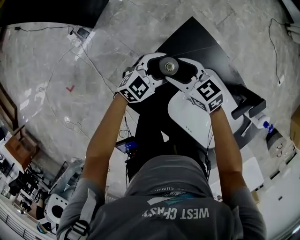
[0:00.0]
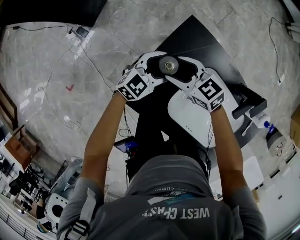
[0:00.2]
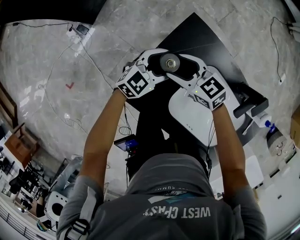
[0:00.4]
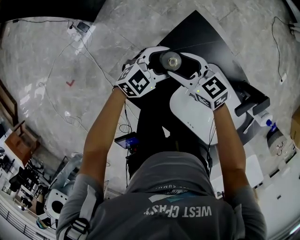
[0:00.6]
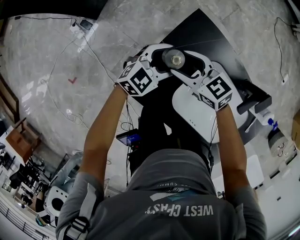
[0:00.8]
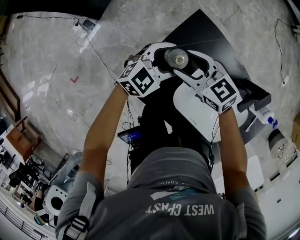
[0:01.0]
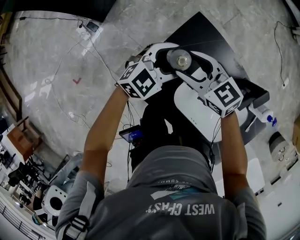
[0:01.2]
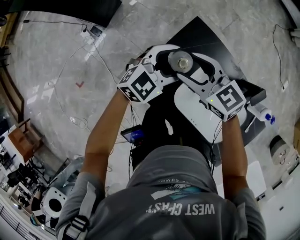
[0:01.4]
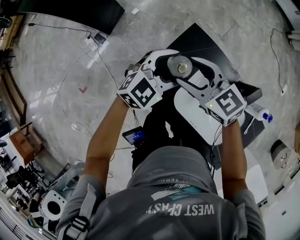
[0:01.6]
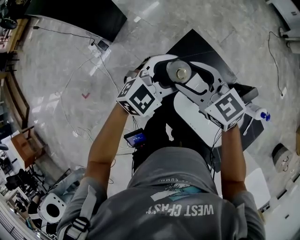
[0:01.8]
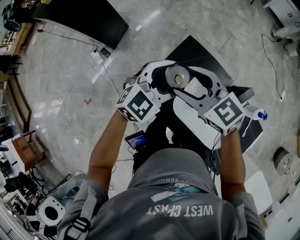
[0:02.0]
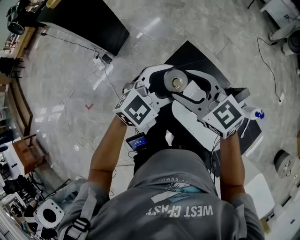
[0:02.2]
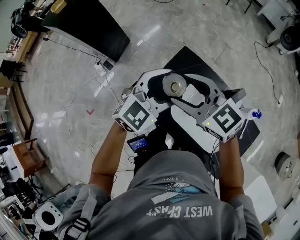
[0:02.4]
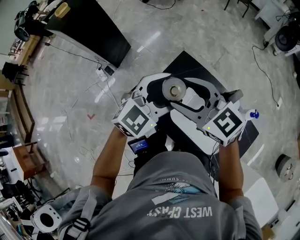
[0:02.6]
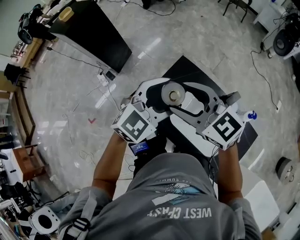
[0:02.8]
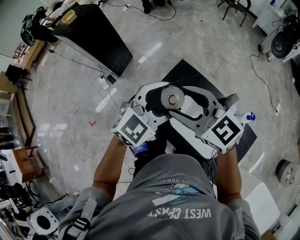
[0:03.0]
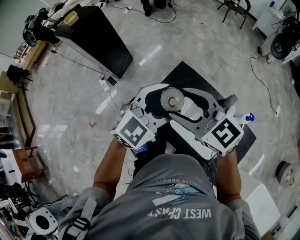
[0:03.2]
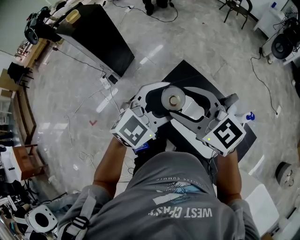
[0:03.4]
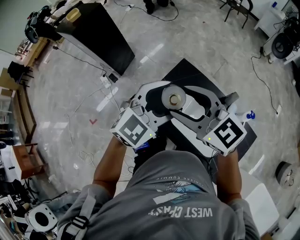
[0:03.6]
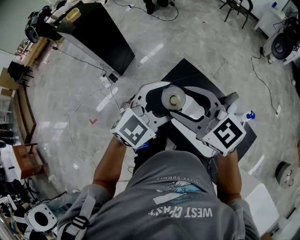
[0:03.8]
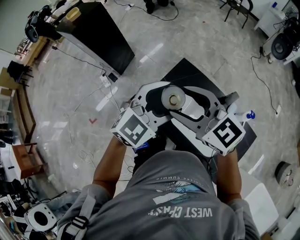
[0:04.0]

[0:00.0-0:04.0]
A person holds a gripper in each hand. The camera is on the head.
0:00.0 to 0:01.4: The grippers both shift upward by about 15 cm.
0:01.4 to 0:02.6: The grippers both shift upward and backward by approximately 20 cm.
0:02.6 to 0:04.0: The grippers both shift backward and upward by approximately 10 cm.

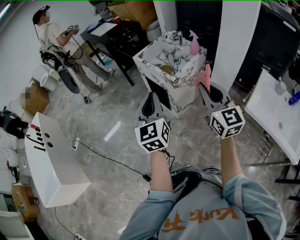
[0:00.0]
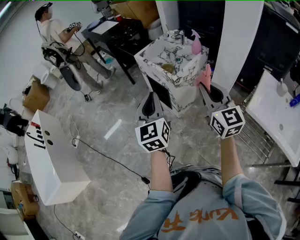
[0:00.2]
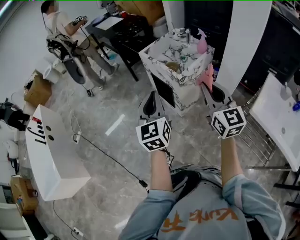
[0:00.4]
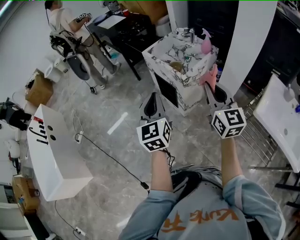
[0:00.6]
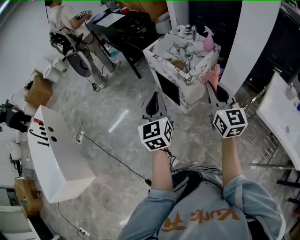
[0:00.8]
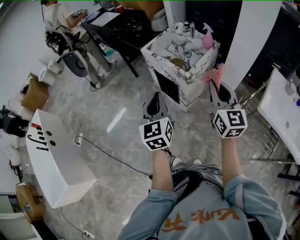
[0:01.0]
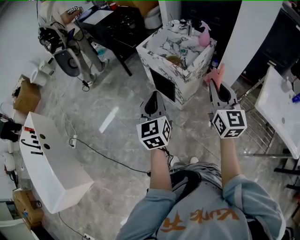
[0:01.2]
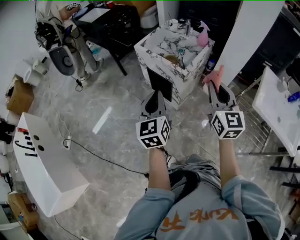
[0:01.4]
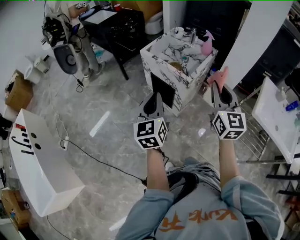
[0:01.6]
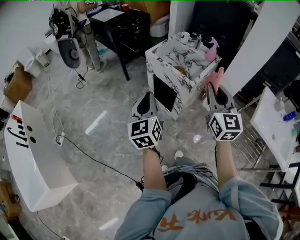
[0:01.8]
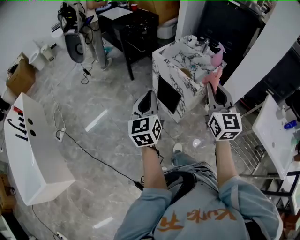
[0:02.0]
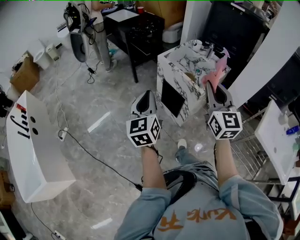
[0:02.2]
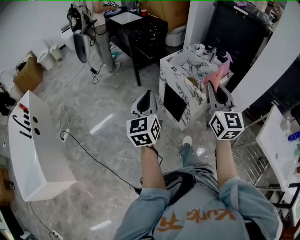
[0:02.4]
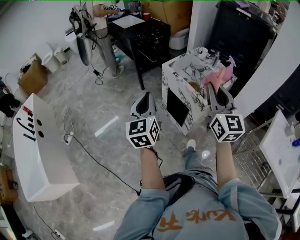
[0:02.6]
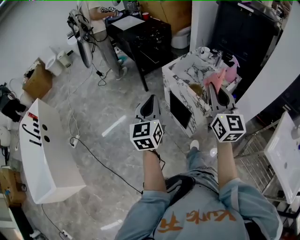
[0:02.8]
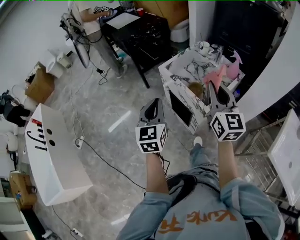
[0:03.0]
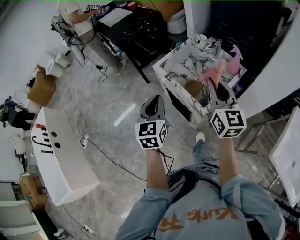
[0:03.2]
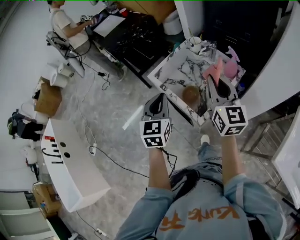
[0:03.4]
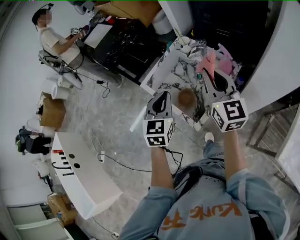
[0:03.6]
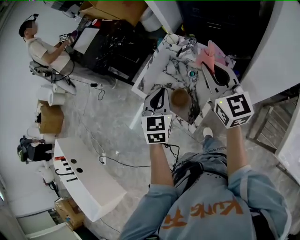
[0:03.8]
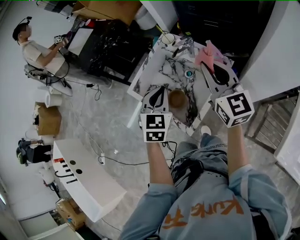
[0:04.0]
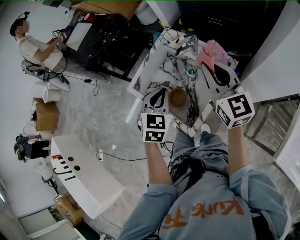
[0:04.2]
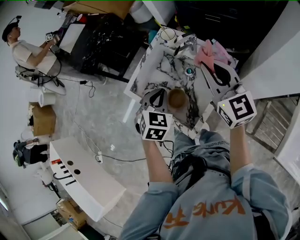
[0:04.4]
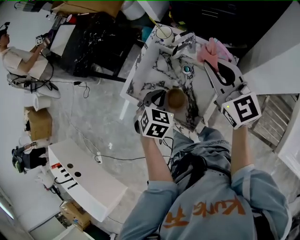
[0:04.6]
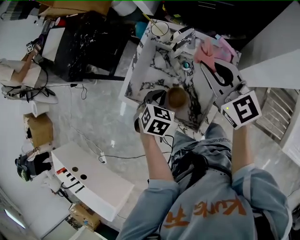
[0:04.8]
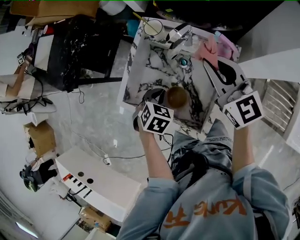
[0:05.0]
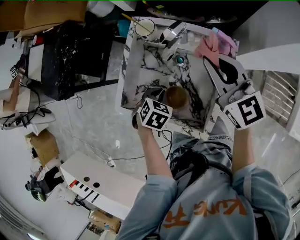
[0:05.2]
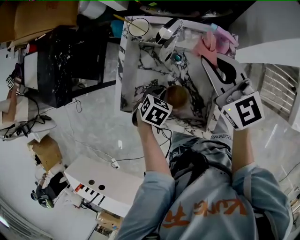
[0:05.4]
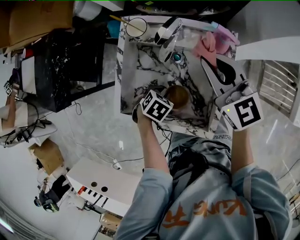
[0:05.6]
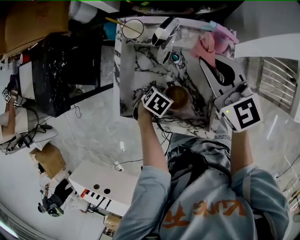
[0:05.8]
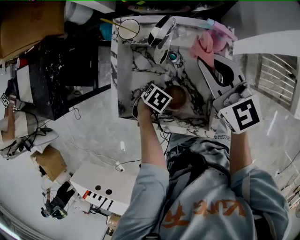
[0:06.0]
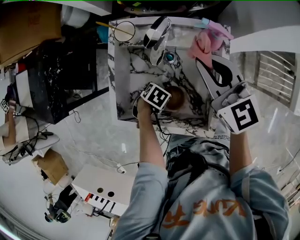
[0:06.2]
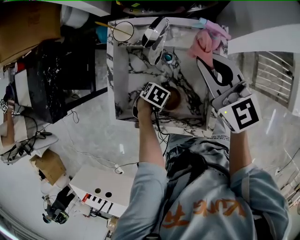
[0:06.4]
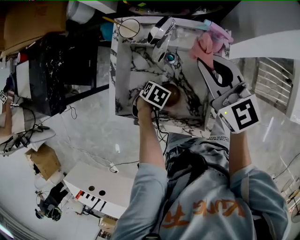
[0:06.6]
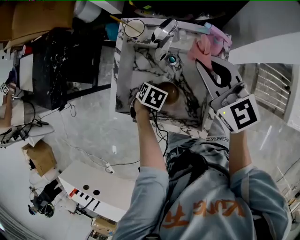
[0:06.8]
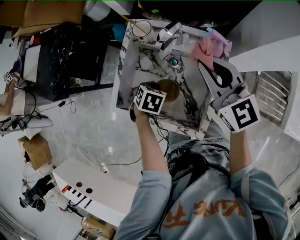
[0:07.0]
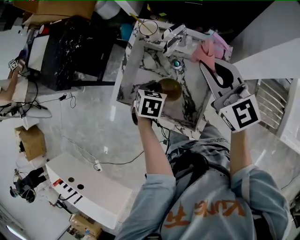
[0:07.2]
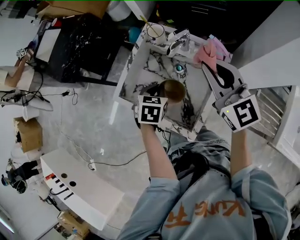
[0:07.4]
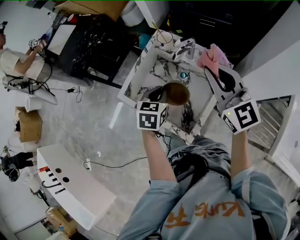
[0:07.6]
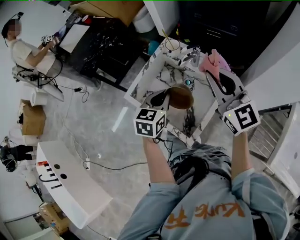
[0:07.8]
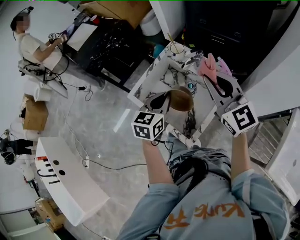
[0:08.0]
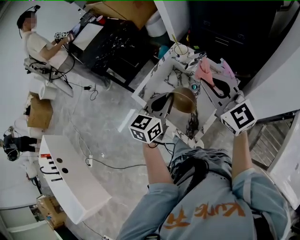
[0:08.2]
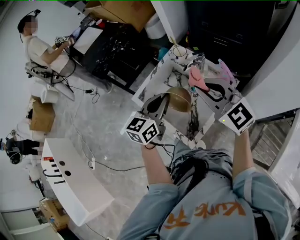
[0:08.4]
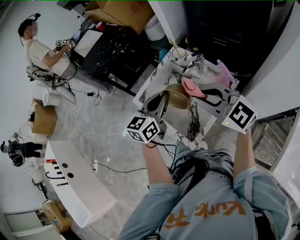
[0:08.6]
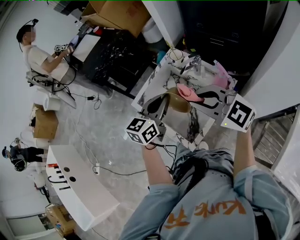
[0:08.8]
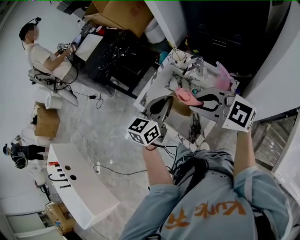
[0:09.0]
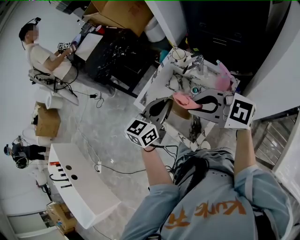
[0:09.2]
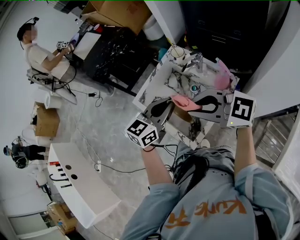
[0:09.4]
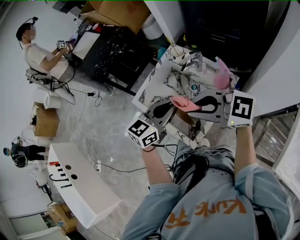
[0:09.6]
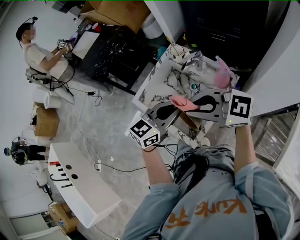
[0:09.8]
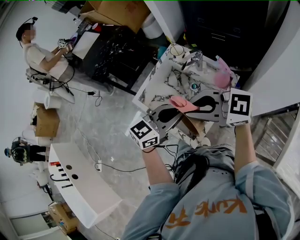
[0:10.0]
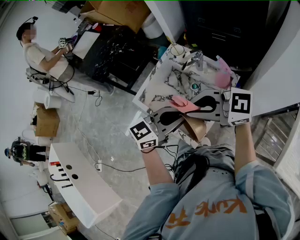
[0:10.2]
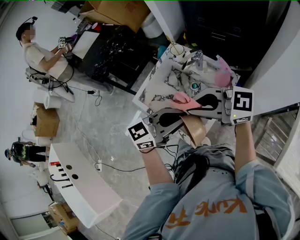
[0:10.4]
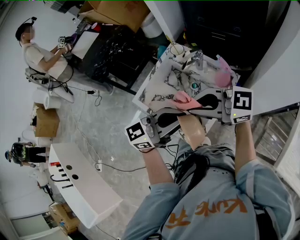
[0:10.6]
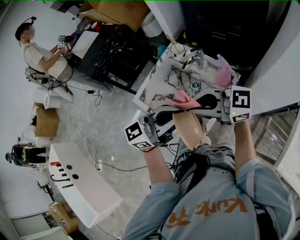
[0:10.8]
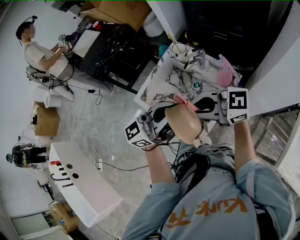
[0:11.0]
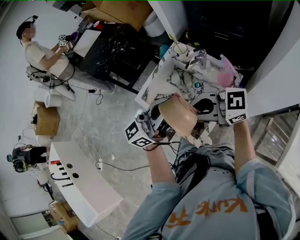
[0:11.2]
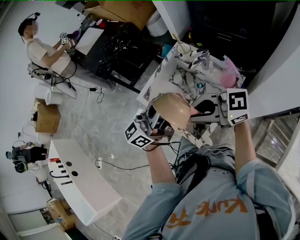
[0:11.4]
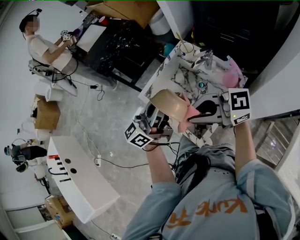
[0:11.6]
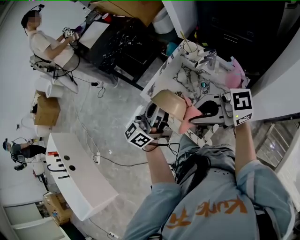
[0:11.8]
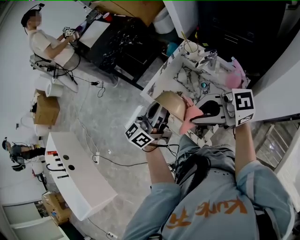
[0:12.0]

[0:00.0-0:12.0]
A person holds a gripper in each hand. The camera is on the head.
0:00.0 to 0:01.6: The right gripper heads to the left and forward, covering approximately 10 cm. Meanwhile the left gripper is displaced to the left, forward and downward by approximately 15 cm.
0:01.6 to 0:03.0: Both grippers travel together forward, approximately 20 cm.
0:03.0 to 0:04.4: The right gripper is displaced forward and to the right by roughly 30 cm; the left gripper shifts roughly 35 cm forward, to the right and downward, and tilts its fingers about 30 degrees downward.
0:04.4 to 0:06.0: The right gripper is displaced downward by roughly 10 cm, and swivels some 20 degrees. Meanwhile the left gripper shifts some 25 cm downward, tips its fingers downward by roughly 30 degrees, and opens its fingers.
0:06.0 to 0:07.6: The right gripper goes roughly 10 cm upward, and swivels about 20 degrees, while the left gripper shifts some 20 cm upward, points its fingers some 30 degrees further upward, and closes its fingers.
0:07.6 to 0:09.0: The left gripper travels upward by approximately 10 cm, and rotates about 30 degrees; the right gripper travels to the left and backward by about 10 cm, and rotates approximately 50 degrees.
0:09.0 to 0:10.4: The right gripper turns by approximately 30 degrees. The left gripper shifts by roughly 10 cm, and swivels roughly 40 degrees.
0:10.4 to 0:12.0: The left gripper ends up approximately 15 cm from where it was, and rotates about 40 degrees.

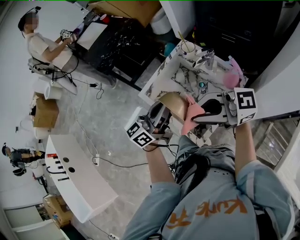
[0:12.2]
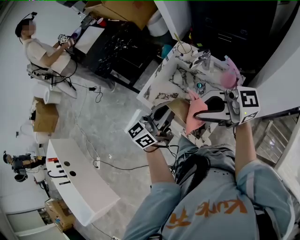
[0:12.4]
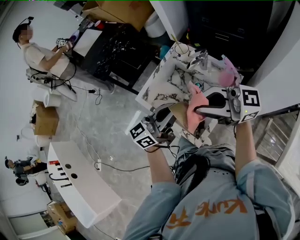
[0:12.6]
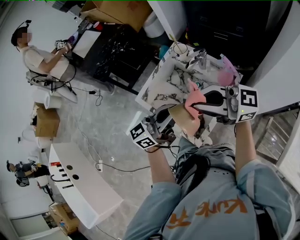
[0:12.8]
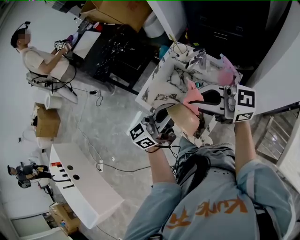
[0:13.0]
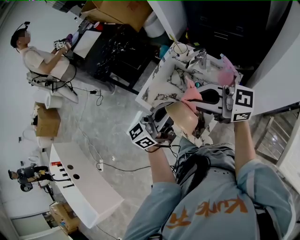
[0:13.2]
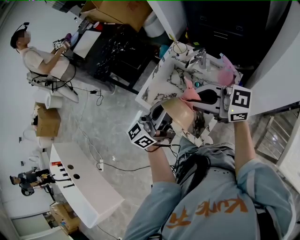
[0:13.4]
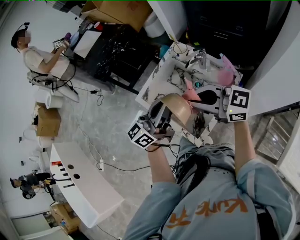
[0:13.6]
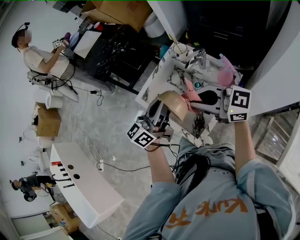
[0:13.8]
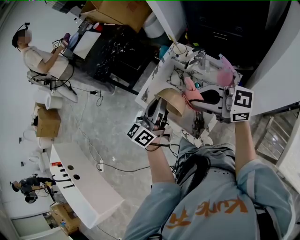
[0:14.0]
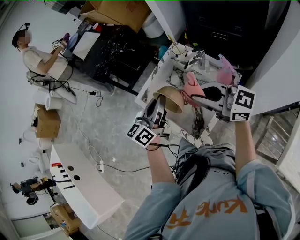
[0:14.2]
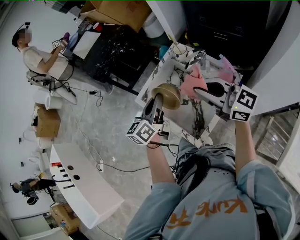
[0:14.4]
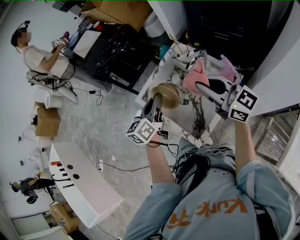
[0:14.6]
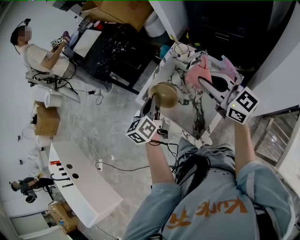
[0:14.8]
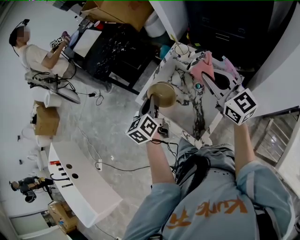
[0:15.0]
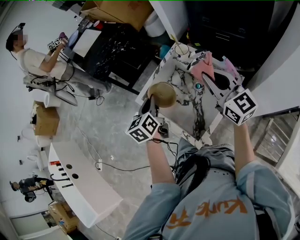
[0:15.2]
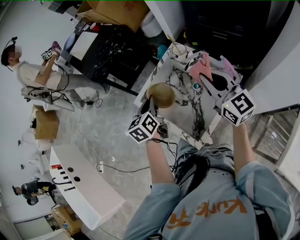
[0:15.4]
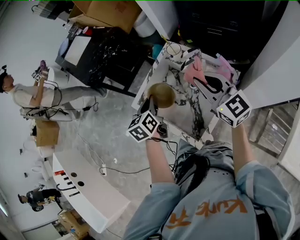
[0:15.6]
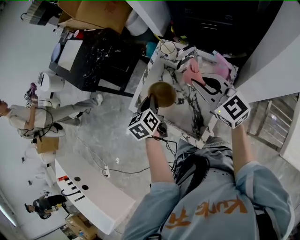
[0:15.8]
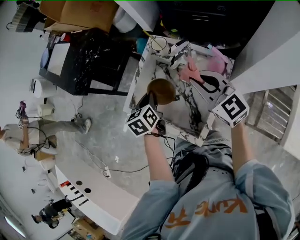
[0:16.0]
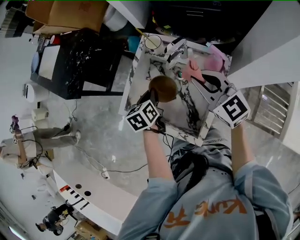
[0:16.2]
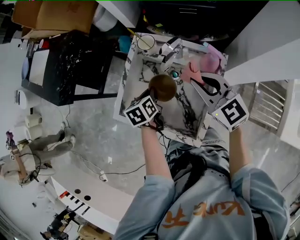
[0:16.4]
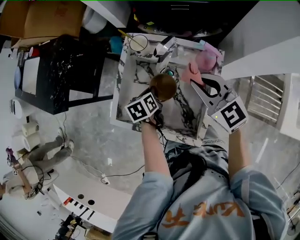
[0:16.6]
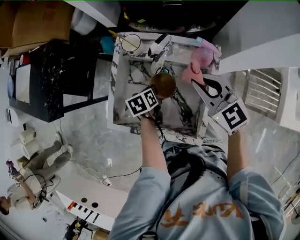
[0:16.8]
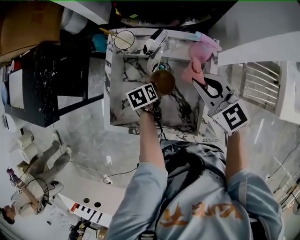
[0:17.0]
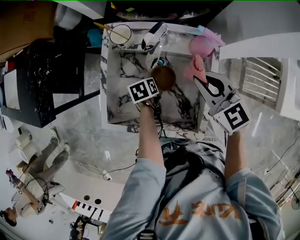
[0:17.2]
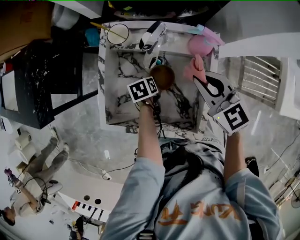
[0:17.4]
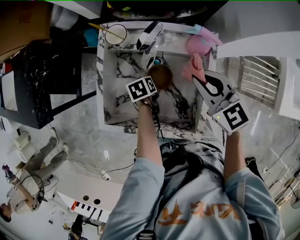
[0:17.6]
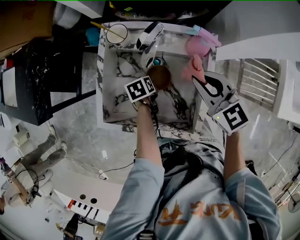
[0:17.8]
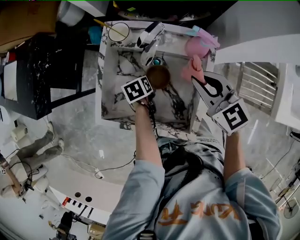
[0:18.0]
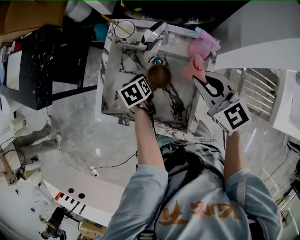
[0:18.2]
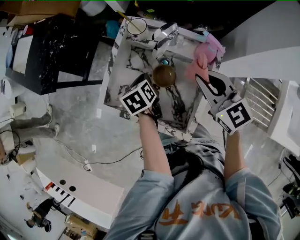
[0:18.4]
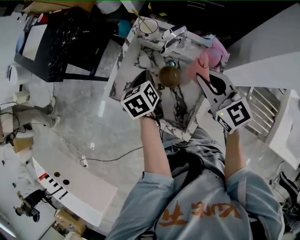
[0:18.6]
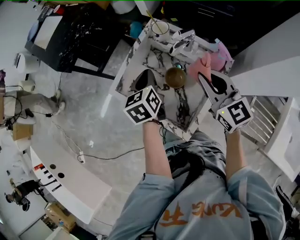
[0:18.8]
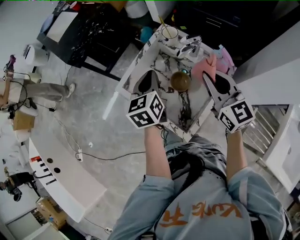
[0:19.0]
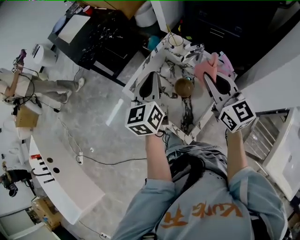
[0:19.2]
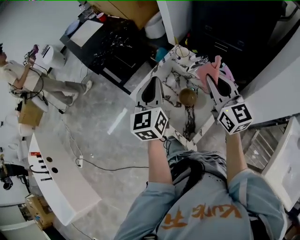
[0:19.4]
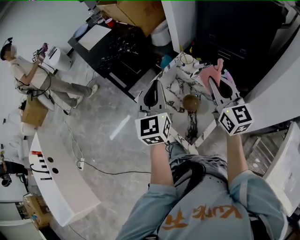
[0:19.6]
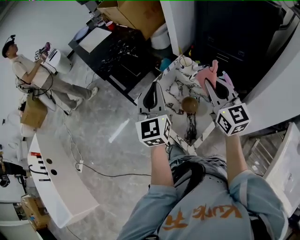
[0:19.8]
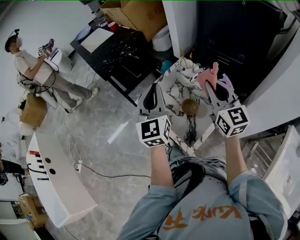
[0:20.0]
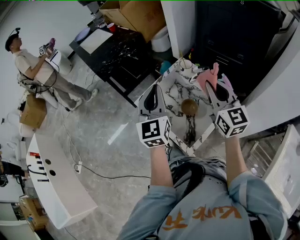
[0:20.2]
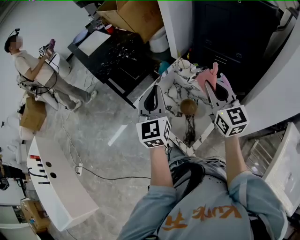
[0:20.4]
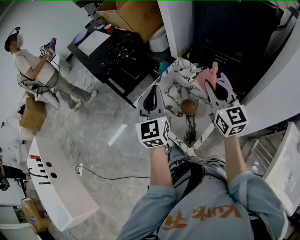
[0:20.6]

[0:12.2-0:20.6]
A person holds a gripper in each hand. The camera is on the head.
0:12.2 to 0:13.6: The right gripper ends up roughly 5 cm from where it was, and swivels some 20 degrees.
0:13.6 to 0:15.0: The right gripper goes roughly 10 cm to the right and forward, and changes its angle by approximately 40 degrees, while the left gripper goes some 15 cm downward, forward and to the left, and points its fingers some 30 degrees further downward.
0:15.0 to 0:16.4: The right gripper heads downward, covering roughly 10 cm, and swivels approximately 20 degrees. The left gripper heads downward, to the right and forward, covering about 20 cm, and swivels approximately 40 degrees.
0:16.4 to 0:17.8: The left gripper travels downward by roughly 15 cm, and changes its angle by roughly 20 degrees. Meanwhile the right gripper goes roughly 5 cm downward.
0:17.8 to 0:19.2: The right gripper goes some 15 cm upward, and changes its angle by about 30 degrees. Meanwhile the left gripper shifts roughly 35 cm upward, and points its fingers roughly 60 degrees further upward.
0:19.2 to 0:20.6: The grippers both shift upward by approximately 5 cm. The left gripper changes its angle by about 20 degrees.
